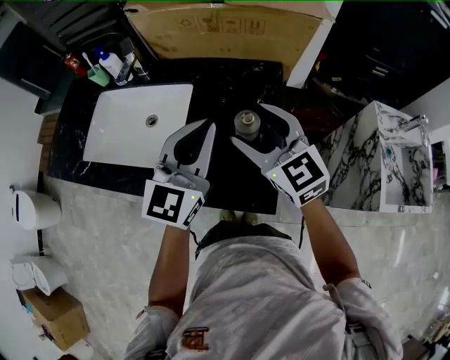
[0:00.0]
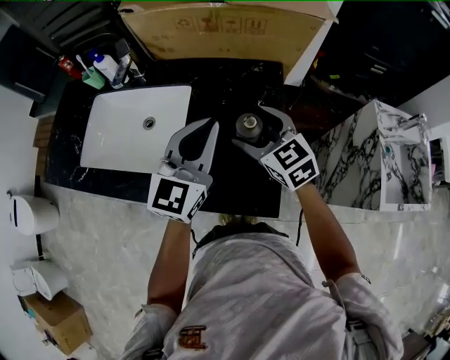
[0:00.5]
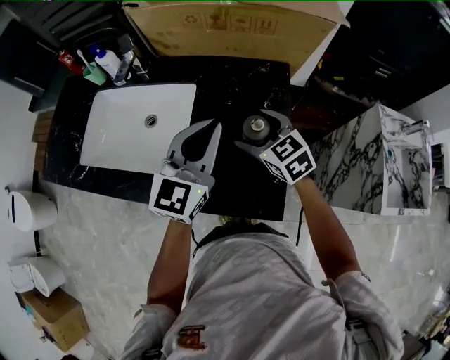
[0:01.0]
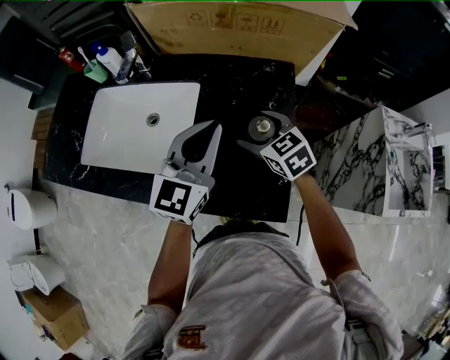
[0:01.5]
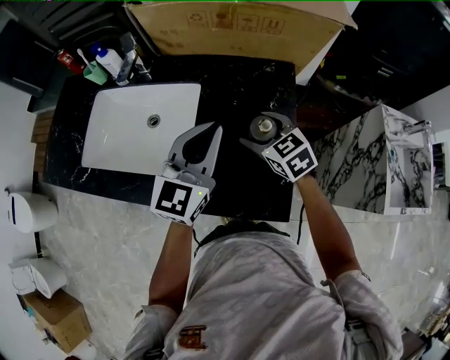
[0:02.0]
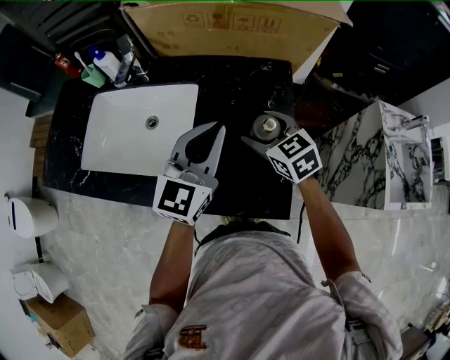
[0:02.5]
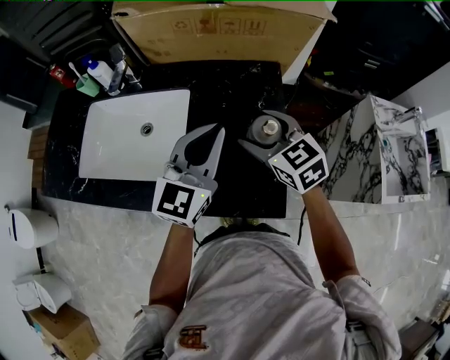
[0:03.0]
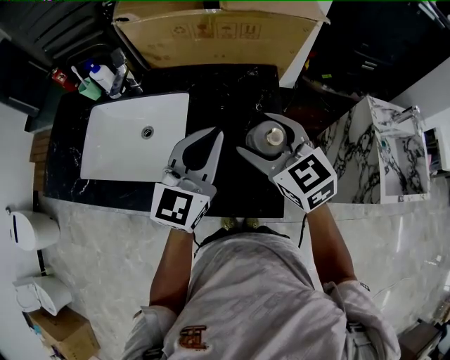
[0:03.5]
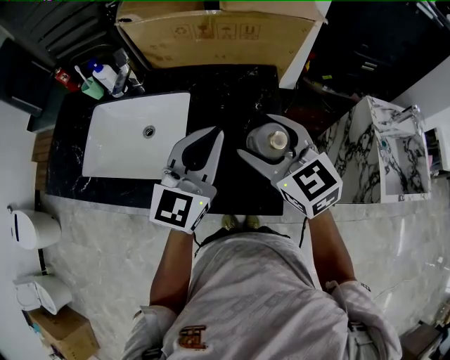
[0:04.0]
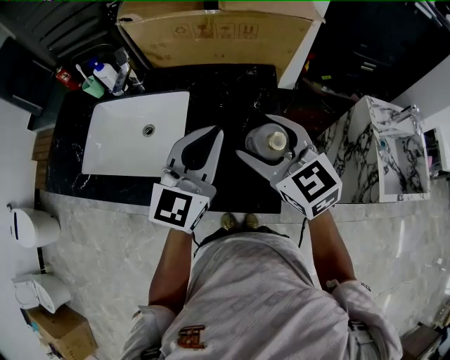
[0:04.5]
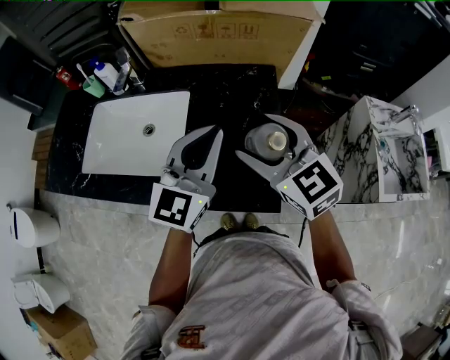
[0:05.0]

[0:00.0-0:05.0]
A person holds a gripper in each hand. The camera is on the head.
0:00.0 to 0:02.5: The right gripper heads downward and forward, covering some 15 cm, and rotates approximately 20 degrees; the left gripper ends up some 5 cm from where it was.
0:02.5 to 0:05.0: The left gripper changes place by about 5 cm. Meanwhile the right gripper shifts about 15 cm upward and backward.

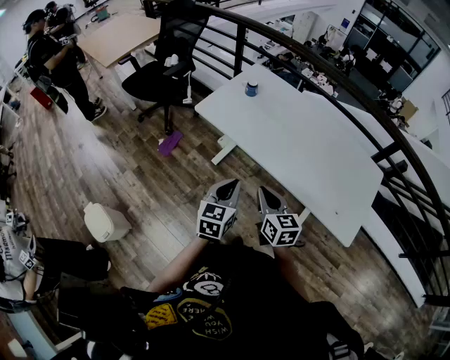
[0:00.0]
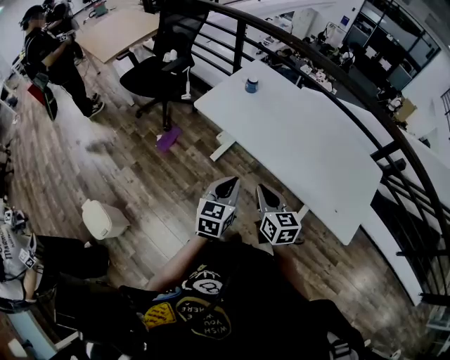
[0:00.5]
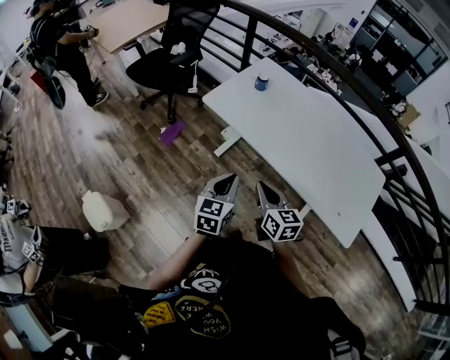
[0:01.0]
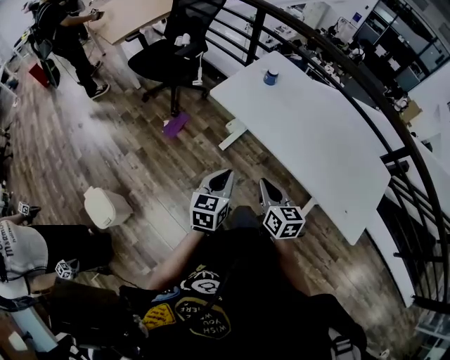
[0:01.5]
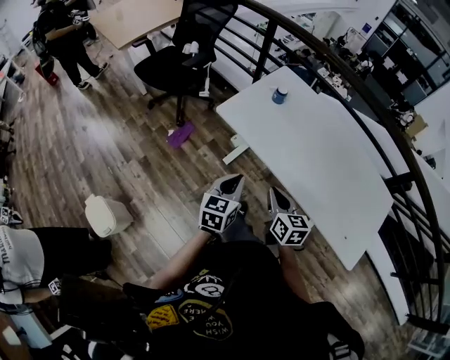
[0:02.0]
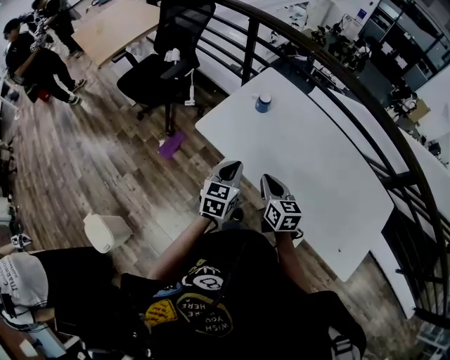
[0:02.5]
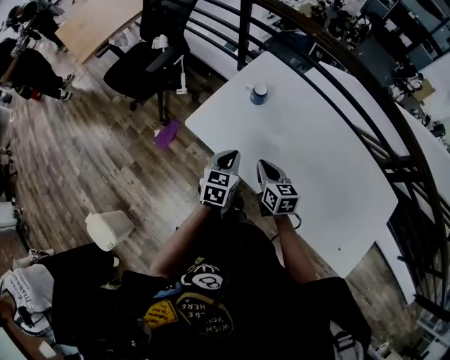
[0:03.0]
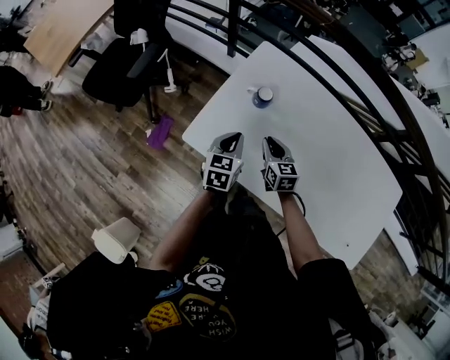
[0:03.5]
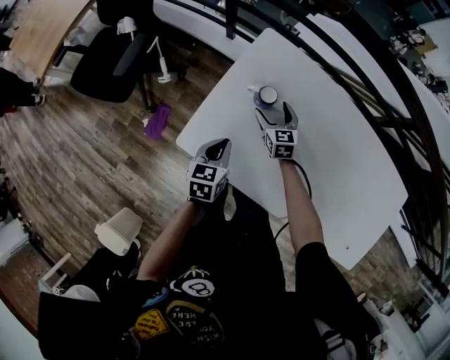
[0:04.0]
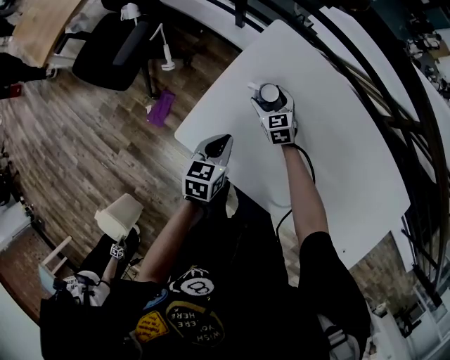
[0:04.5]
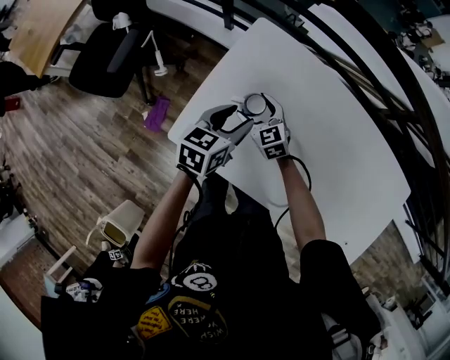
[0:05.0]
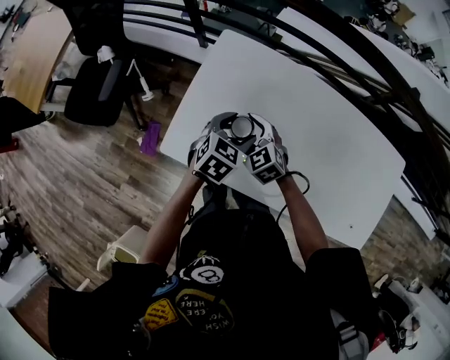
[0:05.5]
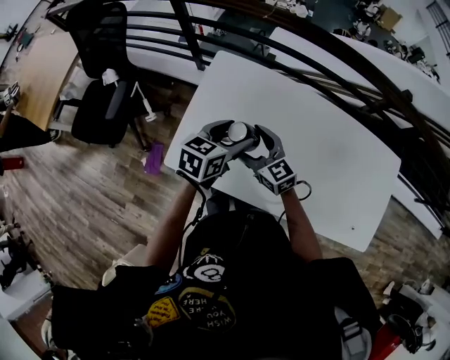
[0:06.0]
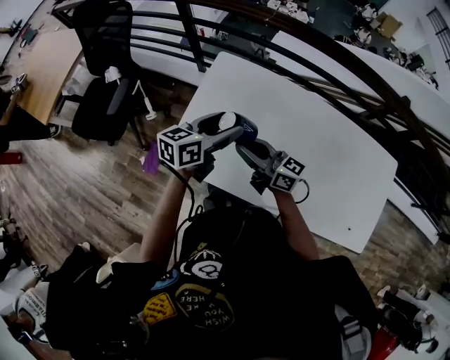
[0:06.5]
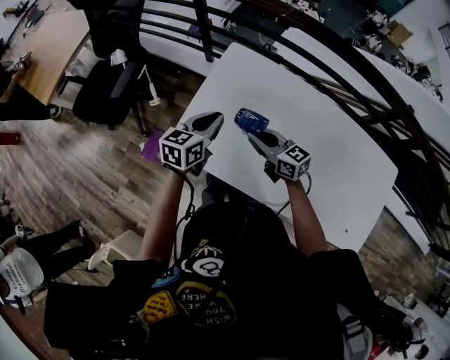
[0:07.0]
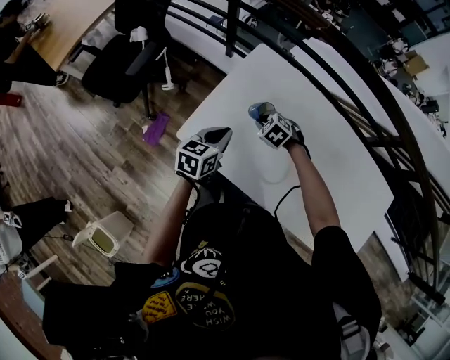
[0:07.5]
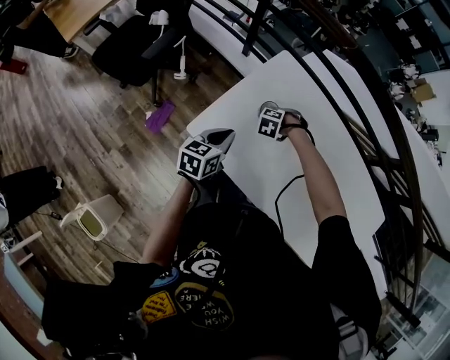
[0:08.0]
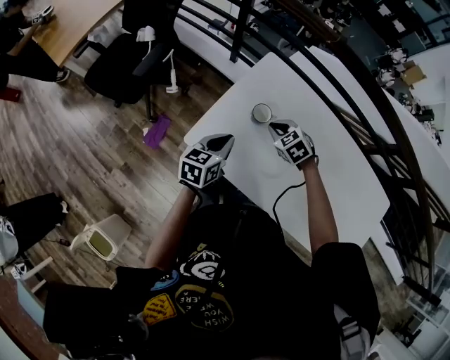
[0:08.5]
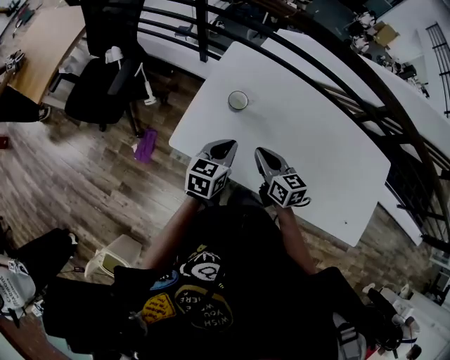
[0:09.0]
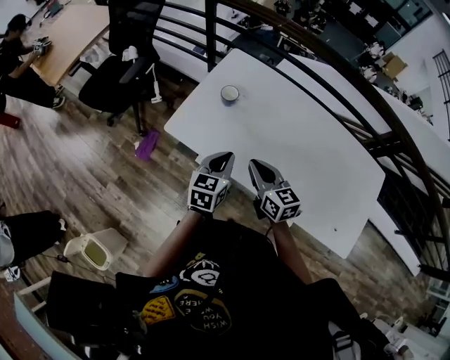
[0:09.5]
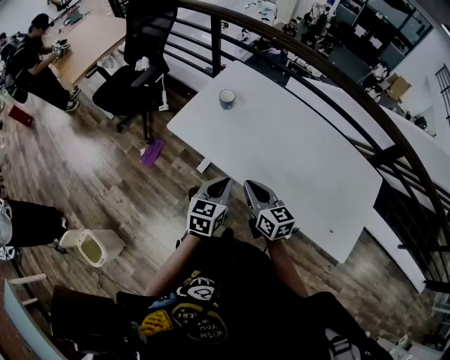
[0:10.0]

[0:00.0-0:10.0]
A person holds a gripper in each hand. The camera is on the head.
0:00.0 to 0:02.0: The grippers both shift forward and to the left by about 15 cm.
0:02.0 to 0:04.0: The two grippers travel together, forward, about 50 cm. Both grippers move downward, some 20 cm. The right gripper opens its fingers. The left gripper changes its angle by roughly 20 degrees.
0:04.0 to 0:06.0: The left gripper goes approximately 20 cm upward and to the right, changes its angle by roughly 30 degrees, and opens up, while the right gripper goes about 25 cm upward and backward, and rotates about 20 degrees.
0:06.0 to 0:08.0: The left gripper shifts by about 20 cm, changes its angle by about 30 degrees, and closes up. The right gripper heads downward, covering some 20 cm, tilts its fingers some 70 degrees downward, and closes.
0:08.0 to 0:10.0: The right gripper changes place by approximately 50 cm, and tilts its fingers approximately 70 degrees upward. The left gripper shifts by some 35 cm.

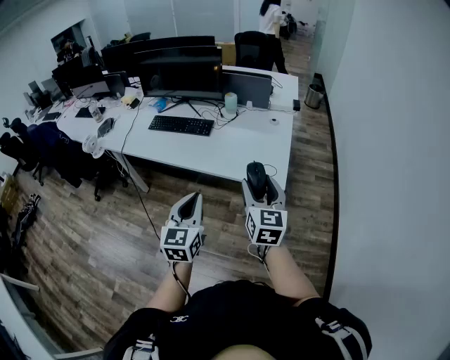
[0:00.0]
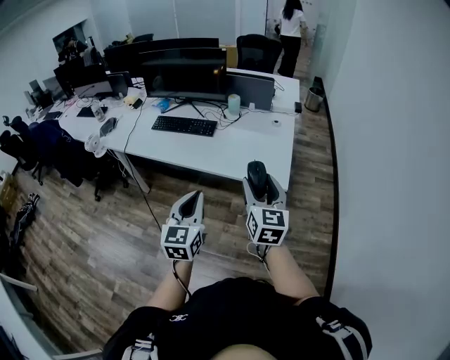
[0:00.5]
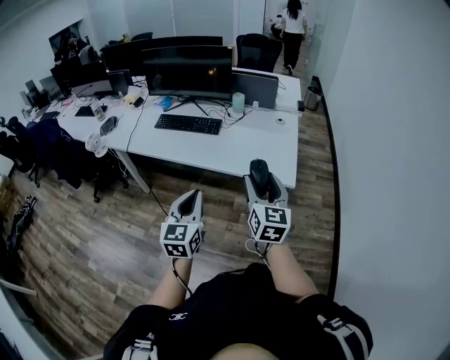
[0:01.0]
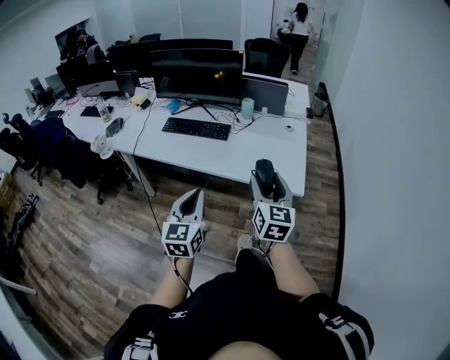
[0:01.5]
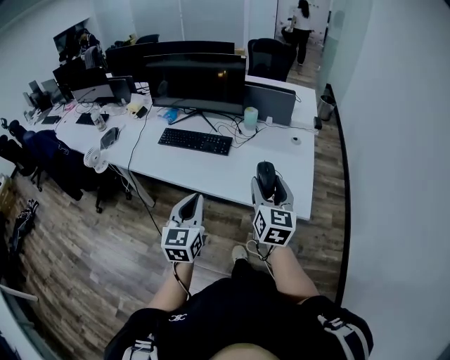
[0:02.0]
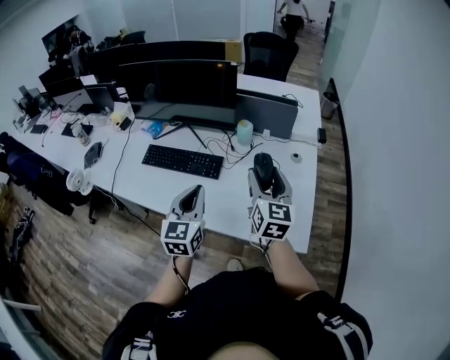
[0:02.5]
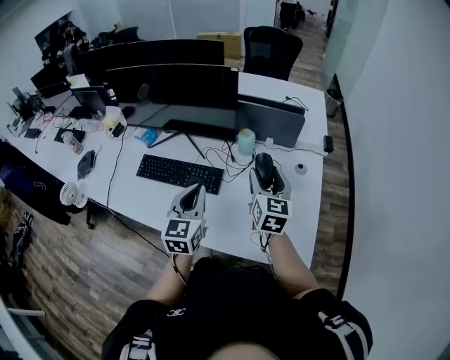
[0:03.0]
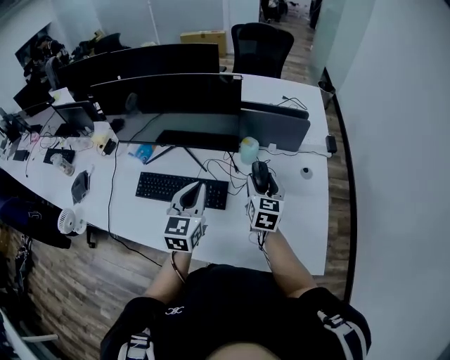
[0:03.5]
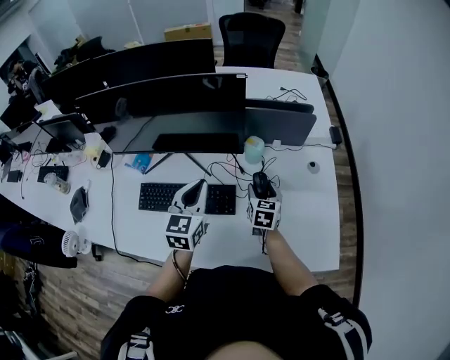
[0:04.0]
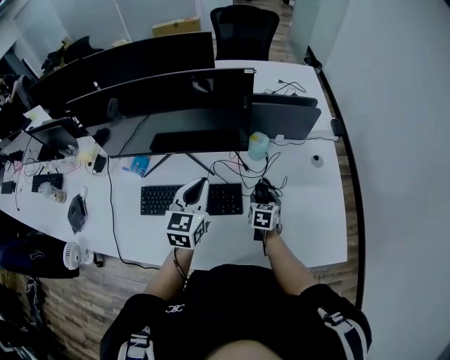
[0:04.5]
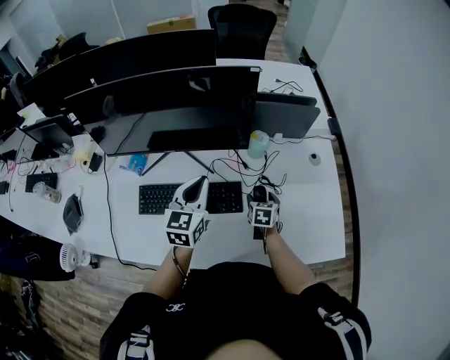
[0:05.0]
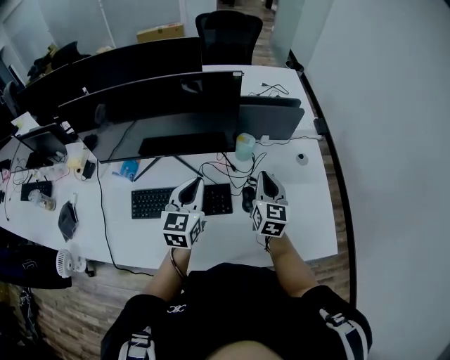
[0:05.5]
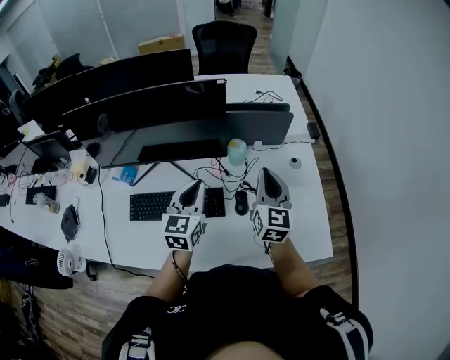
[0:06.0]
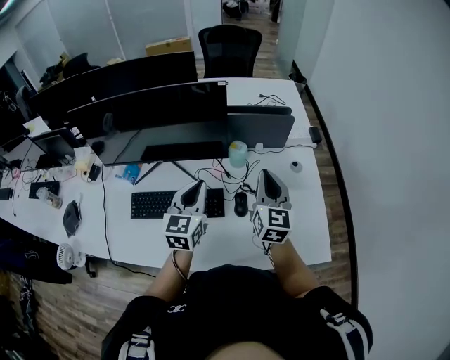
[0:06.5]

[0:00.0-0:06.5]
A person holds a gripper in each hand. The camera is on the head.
0:00.0 to 0:02.0: The grippers both shift forward and to the left by some 20 cm.
0:02.0 to 0:04.5: Both grippers are carried forward, about 50 cm. The left gripper rotates some 20 degrees. Meanwhile the right gripper shifts some 30 cm downward, and angles its fingers downward, by approximately 40 degrees.
0:04.5 to 0:06.5: The left gripper travels to the right and upward by about 10 cm; the right gripper heads upward, covering roughly 30 cm, tips its fingers upward by about 40 degrees, and closes.

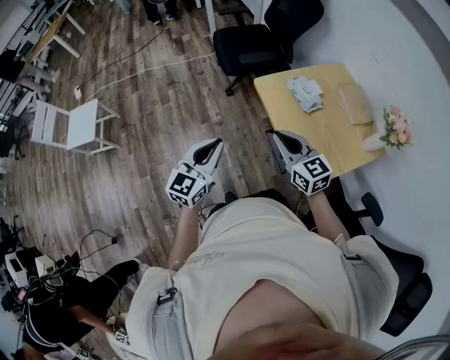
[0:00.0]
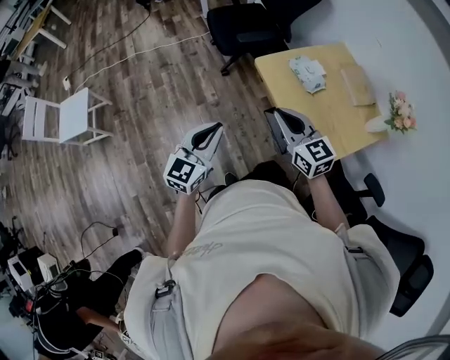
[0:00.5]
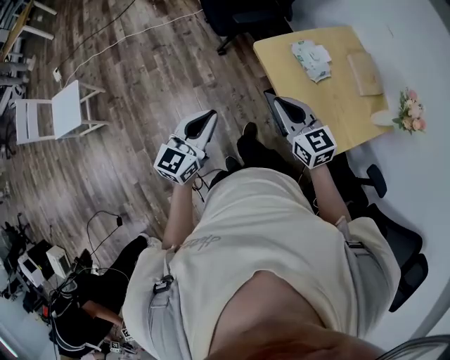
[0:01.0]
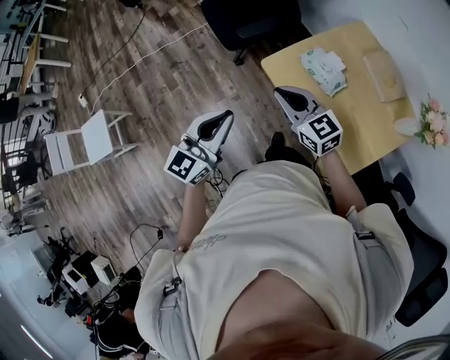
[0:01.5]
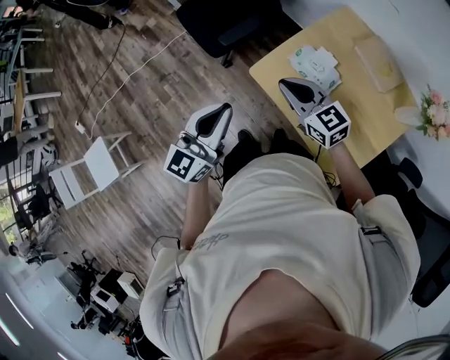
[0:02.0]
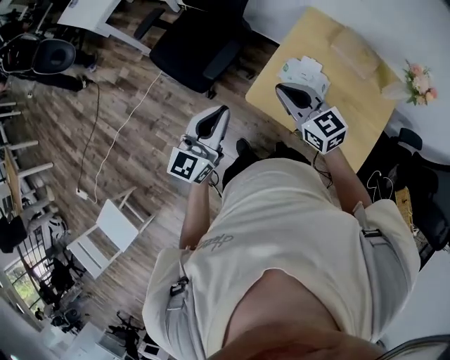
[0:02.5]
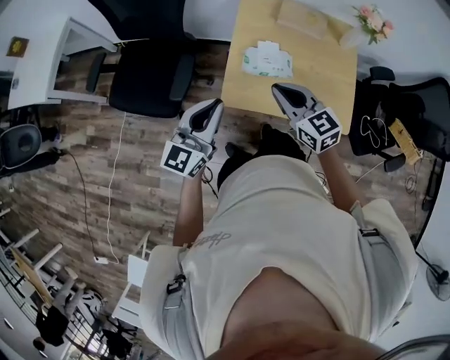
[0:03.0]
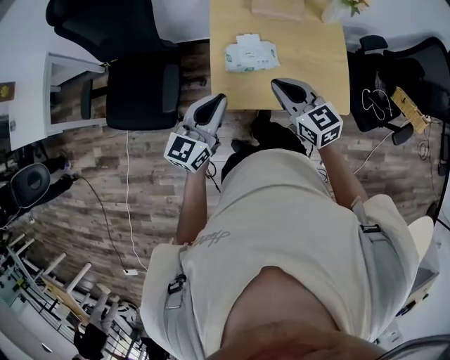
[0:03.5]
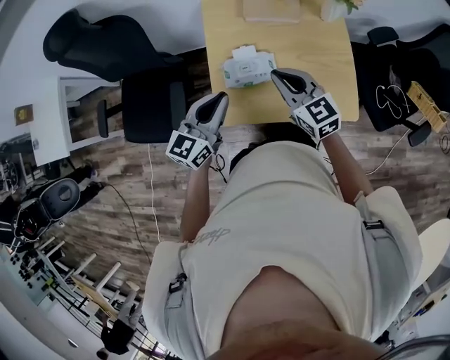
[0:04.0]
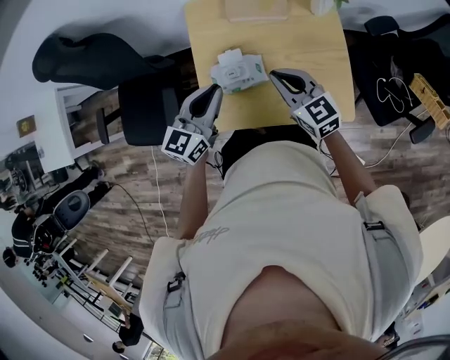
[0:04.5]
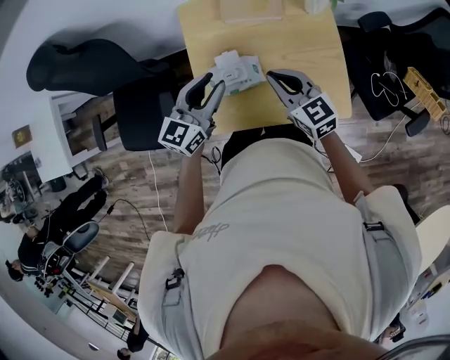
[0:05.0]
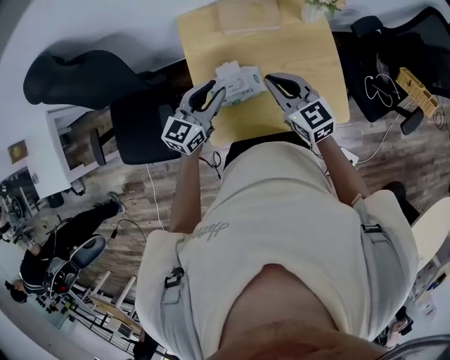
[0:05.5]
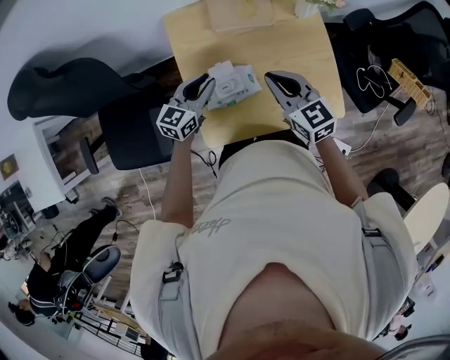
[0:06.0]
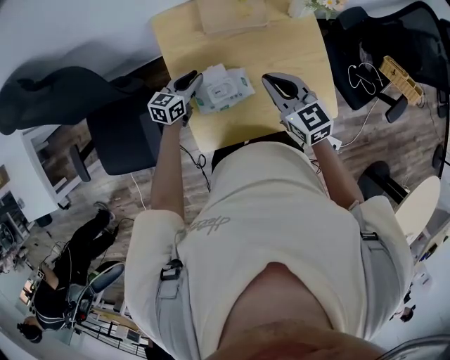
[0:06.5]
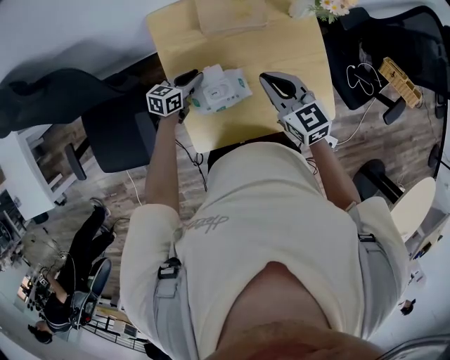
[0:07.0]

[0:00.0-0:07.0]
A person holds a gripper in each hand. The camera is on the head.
0:00.0 to 0:02.0: The grippers both shift forward by some 30 cm. The left gripper turns by roughly 20 degrees.
0:02.0 to 0:03.5: The left gripper moves about 15 cm, and rotates about 50 degrees. The right gripper changes place by some 5 cm, and changes its angle by approximately 50 degrees.
0:03.5 to 0:05.0: The grippers both shift forward and to the right by some 20 cm. The left gripper opens.
0:05.0 to 0:07.0: The left gripper shifts approximately 30 cm downward and forward, and changes its angle by roughly 40 degrees. The right gripper travels forward by about 5 cm.
